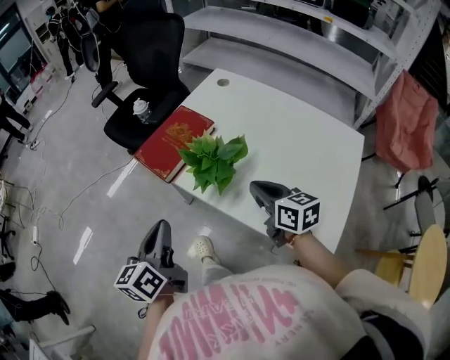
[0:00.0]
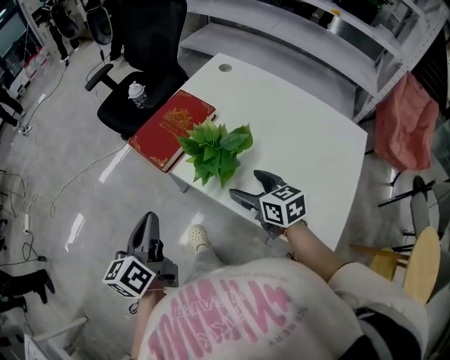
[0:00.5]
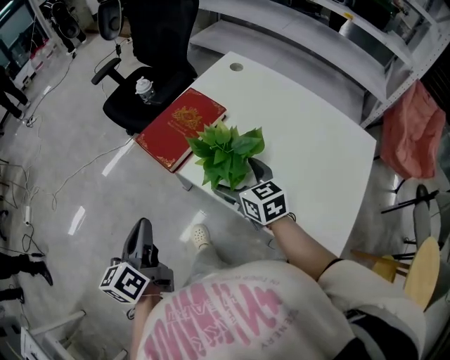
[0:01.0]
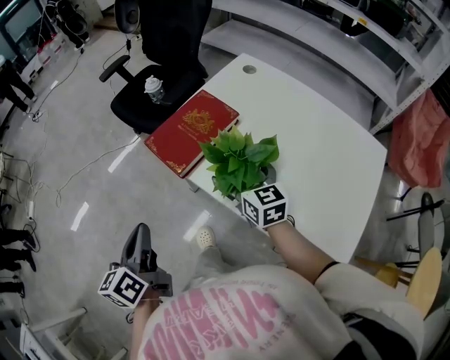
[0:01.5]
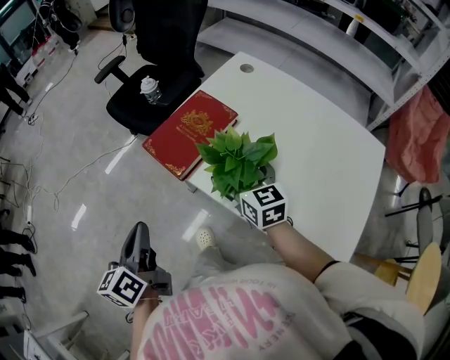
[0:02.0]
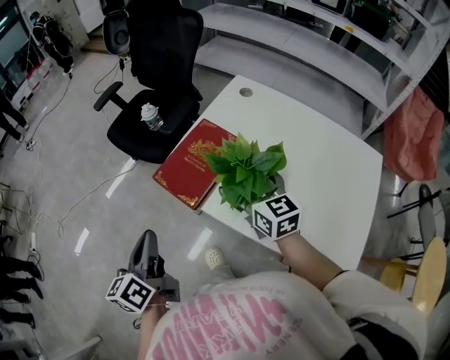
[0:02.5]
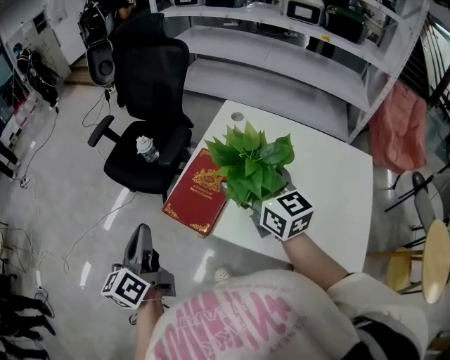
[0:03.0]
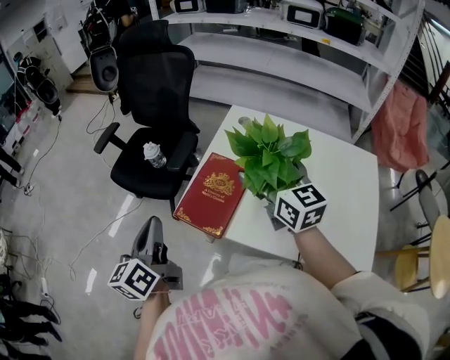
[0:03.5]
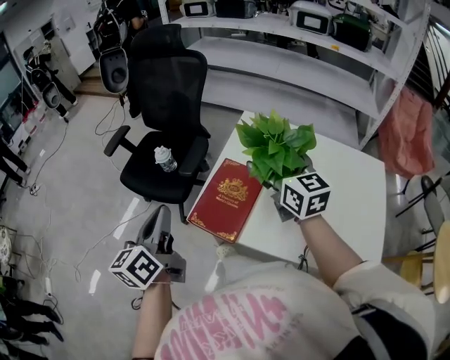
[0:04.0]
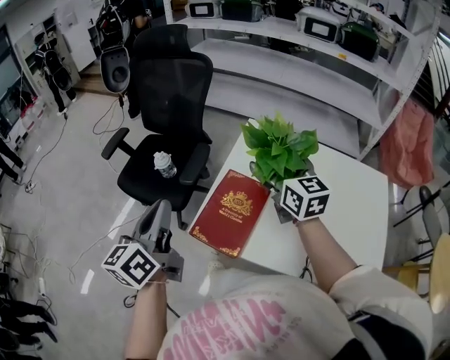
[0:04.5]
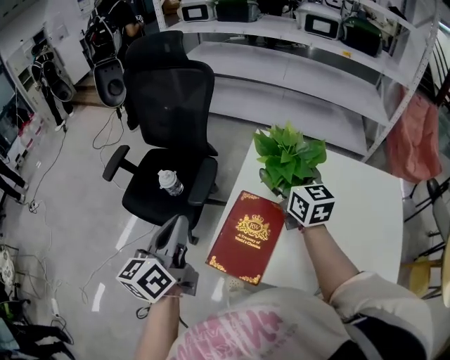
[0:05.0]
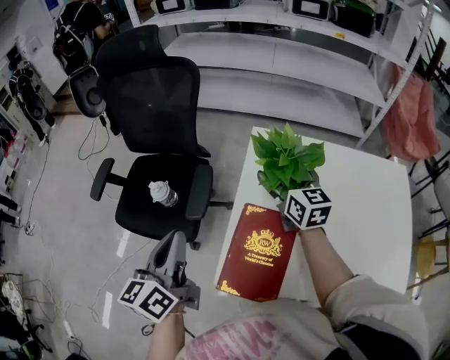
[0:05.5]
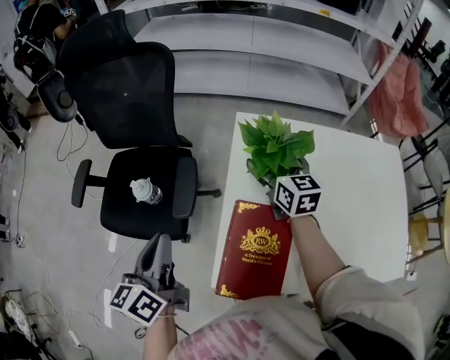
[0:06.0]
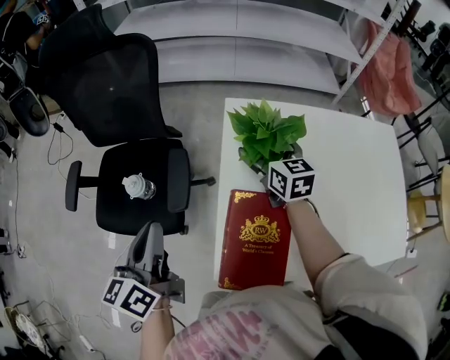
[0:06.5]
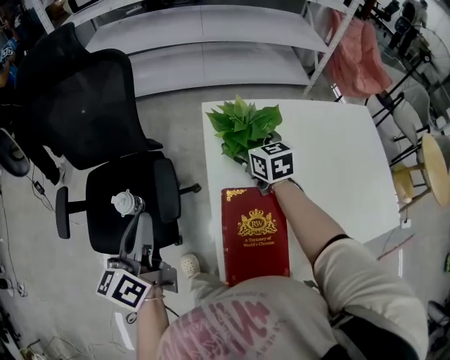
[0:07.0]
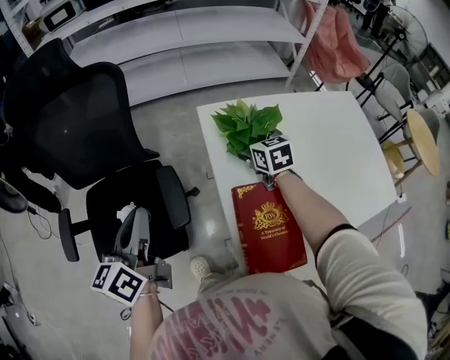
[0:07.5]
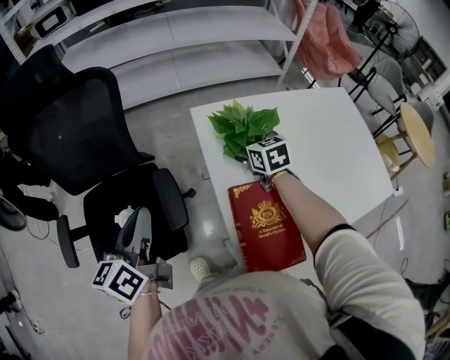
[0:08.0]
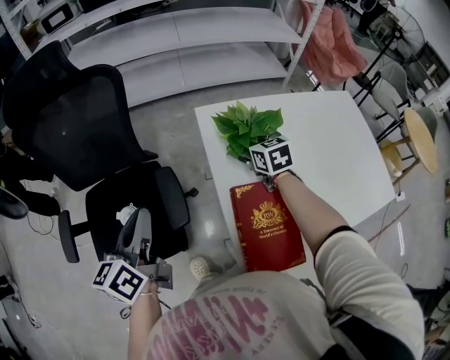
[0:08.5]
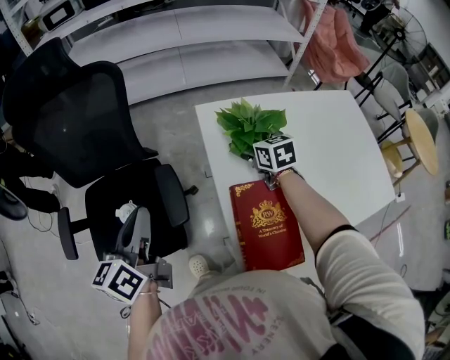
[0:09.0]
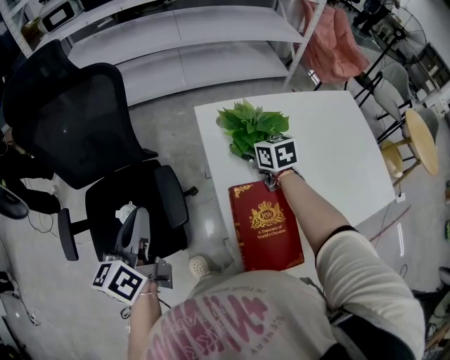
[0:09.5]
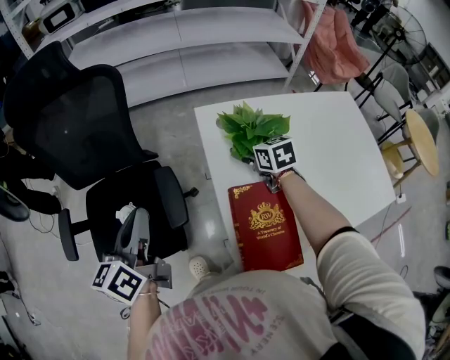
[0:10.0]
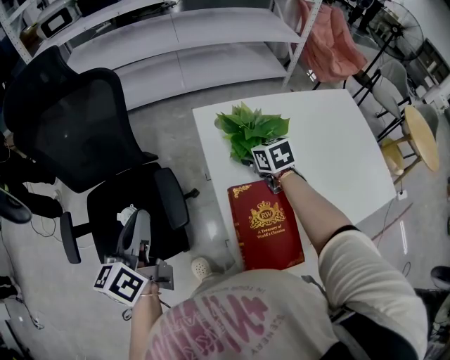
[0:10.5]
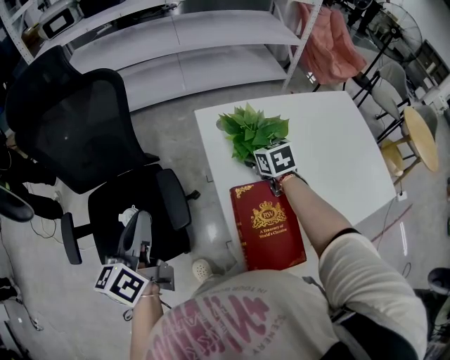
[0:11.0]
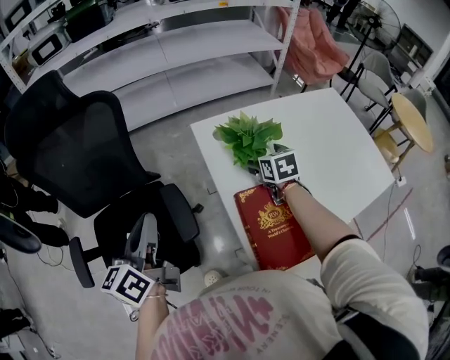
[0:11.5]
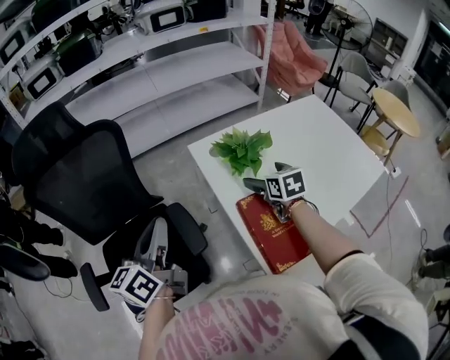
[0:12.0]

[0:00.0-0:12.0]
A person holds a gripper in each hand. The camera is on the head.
0:00.0 to 0:02.0: The right gripper travels forward and to the left by approximately 15 cm, and opens up. The left gripper travels to the left by some 10 cm.
0:02.0 to 0:04.0: The right gripper heads upward and forward, covering roughly 25 cm, and changes its angle by approximately 20 degrees. Meanwhile the left gripper goes roughly 25 cm forward and upward, and swivels roughly 20 degrees.
0:04.0 to 0:06.0: The right gripper shifts roughly 25 cm forward and downward, and changes its angle by roughly 20 degrees. Meanwhile the left gripper is displaced forward by about 20 cm.
0:06.0 to 0:08.0: The left gripper travels forward and to the left by some 10 cm, and rotates some 20 degrees, while the right gripper is displaced downward by roughly 5 cm, and turns by approximately 20 degrees.
0:08.0 to 0:10.0: There are only small adjustments of the grippers.
0:10.0 to 0:12.0: The right gripper heads backward and upward, covering approximately 10 cm; the left gripper shifts by about 5 cm.

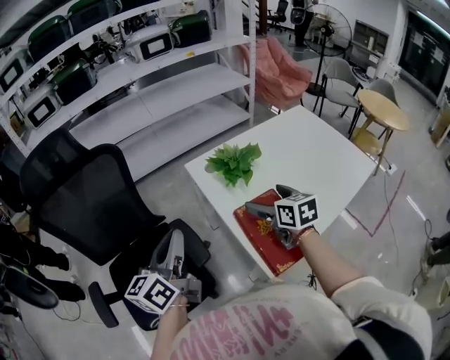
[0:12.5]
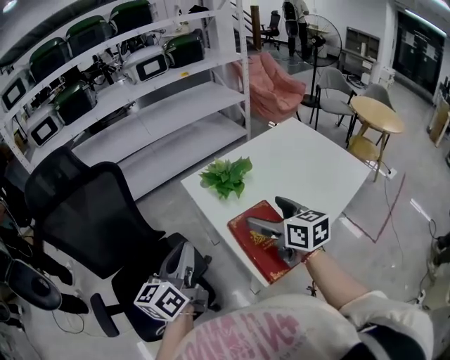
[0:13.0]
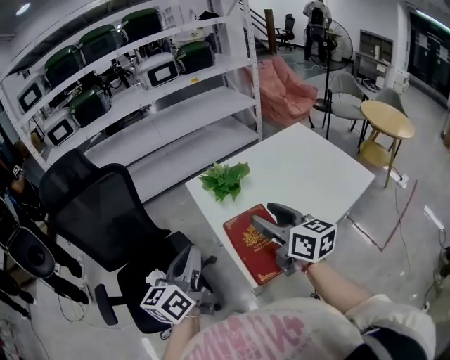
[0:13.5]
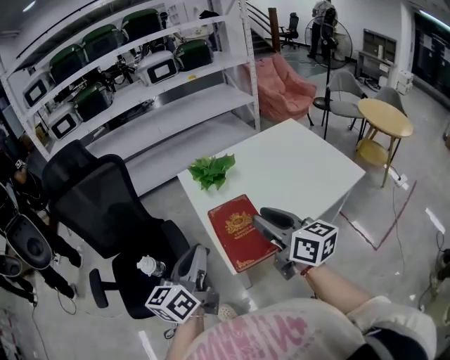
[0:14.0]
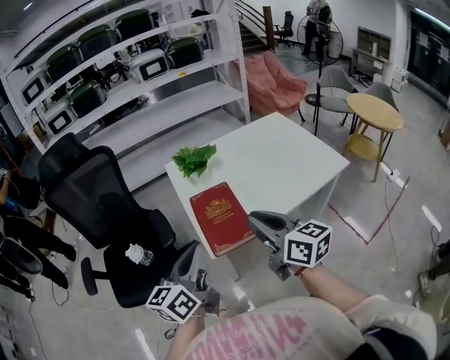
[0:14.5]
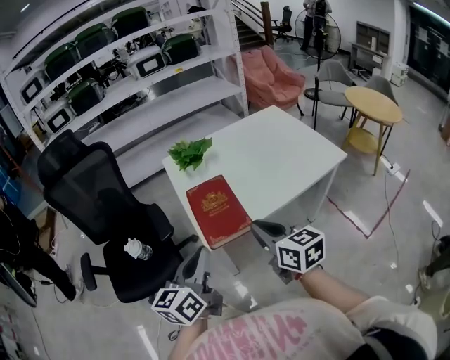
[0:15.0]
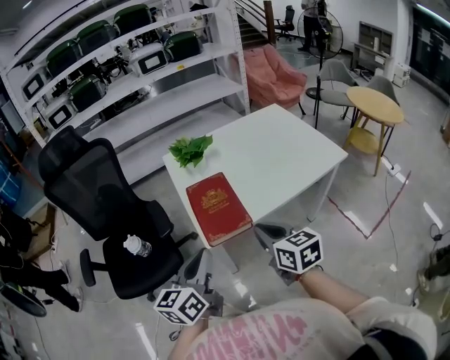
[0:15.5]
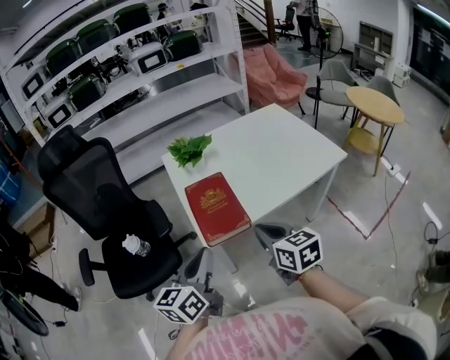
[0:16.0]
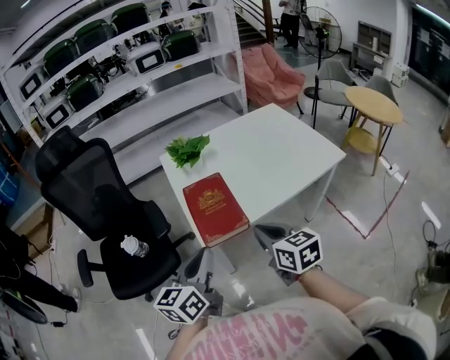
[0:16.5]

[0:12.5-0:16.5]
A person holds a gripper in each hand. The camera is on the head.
0:12.5 to 0:14.5: The left gripper is displaced to the right and backward by roughly 30 cm; the right gripper is displaced backward, upward and to the right by about 30 cm, swivels about 30 degrees, and closes.
0:14.5 to 0:16.5: The right gripper travels downward by roughly 10 cm, and changes its angle by roughly 20 degrees; the left gripper moves about 5 cm.

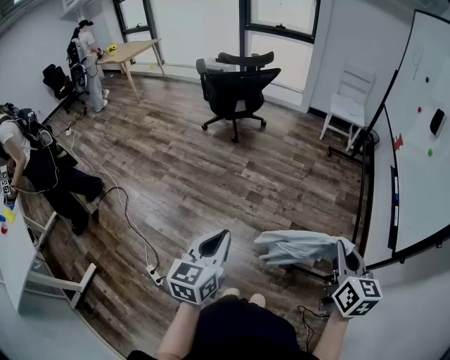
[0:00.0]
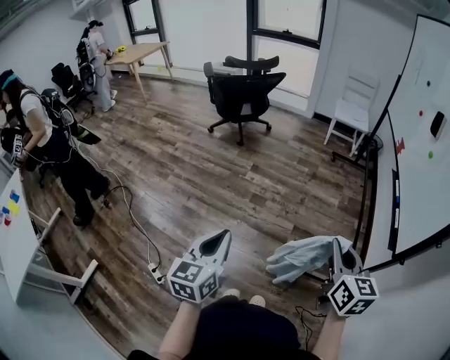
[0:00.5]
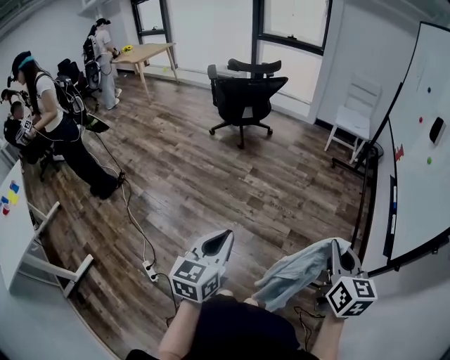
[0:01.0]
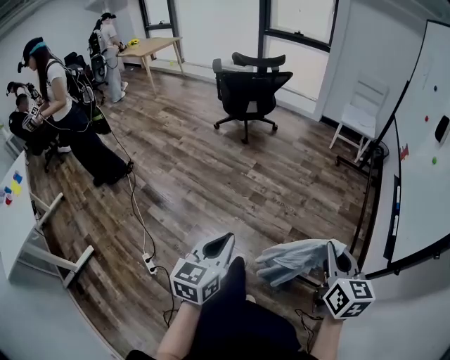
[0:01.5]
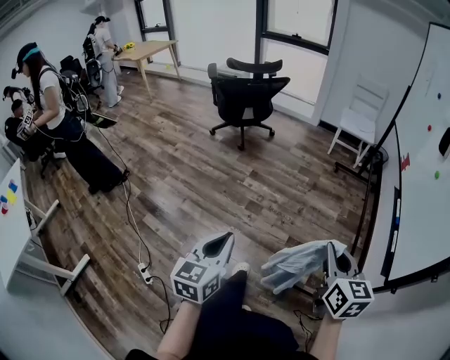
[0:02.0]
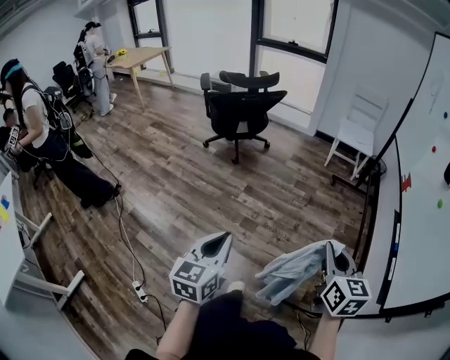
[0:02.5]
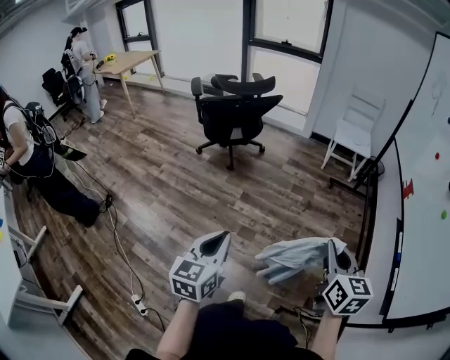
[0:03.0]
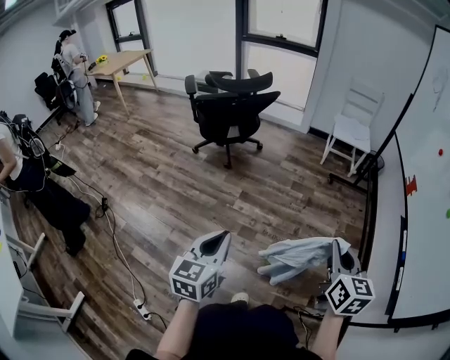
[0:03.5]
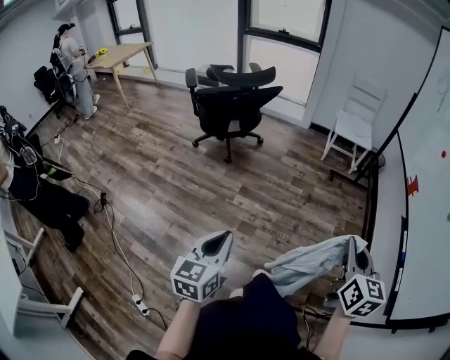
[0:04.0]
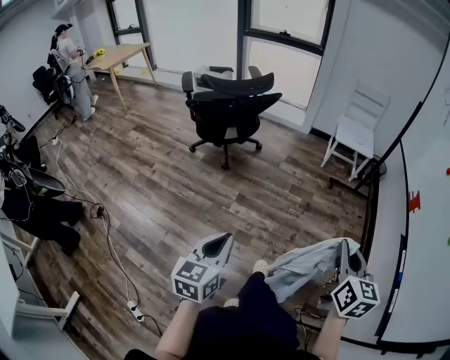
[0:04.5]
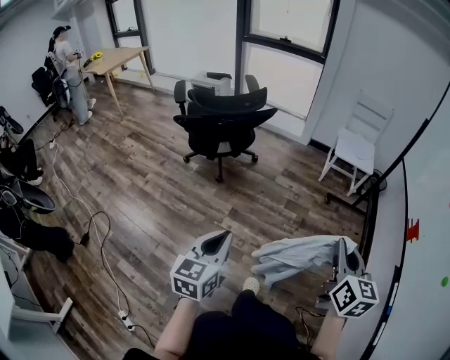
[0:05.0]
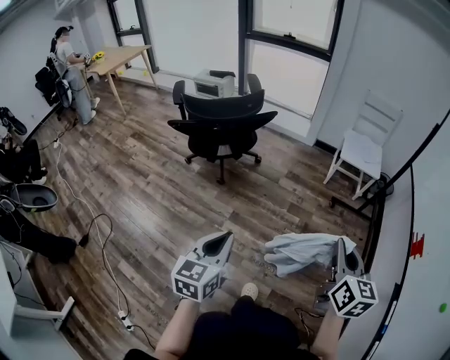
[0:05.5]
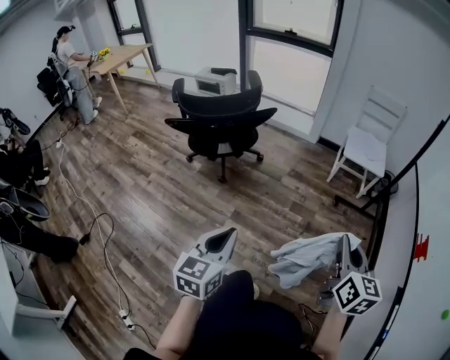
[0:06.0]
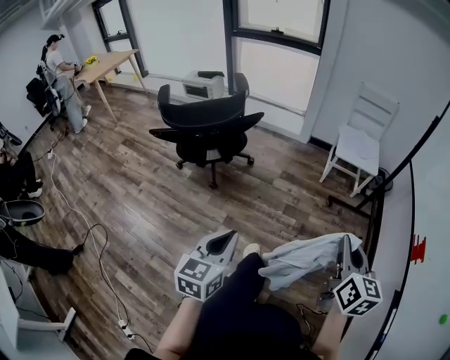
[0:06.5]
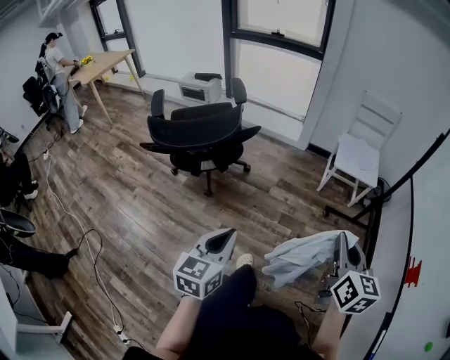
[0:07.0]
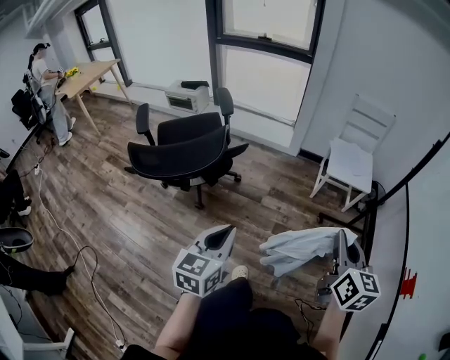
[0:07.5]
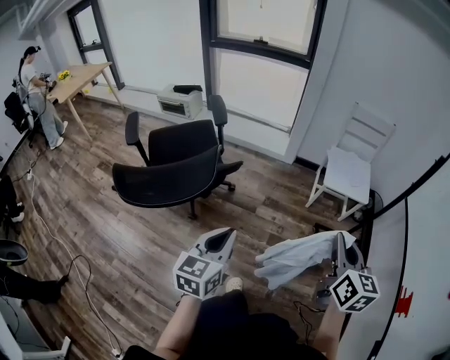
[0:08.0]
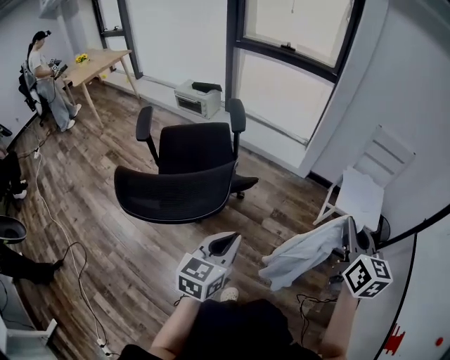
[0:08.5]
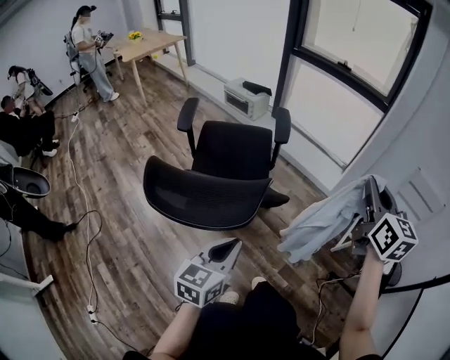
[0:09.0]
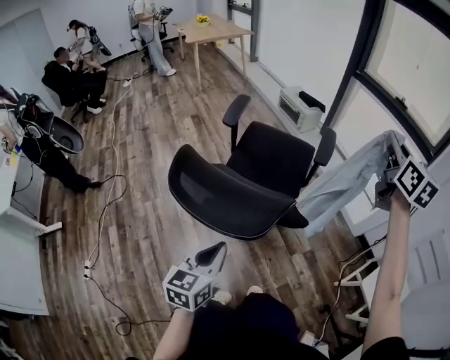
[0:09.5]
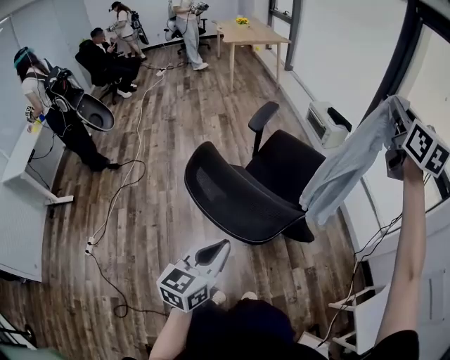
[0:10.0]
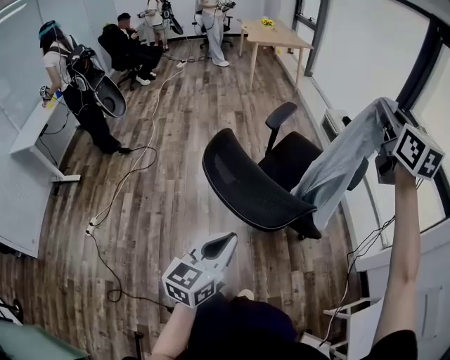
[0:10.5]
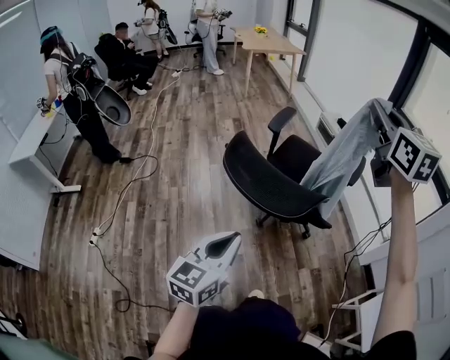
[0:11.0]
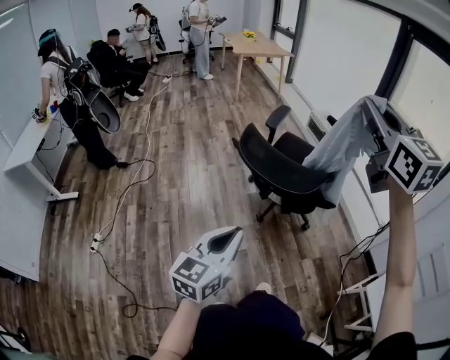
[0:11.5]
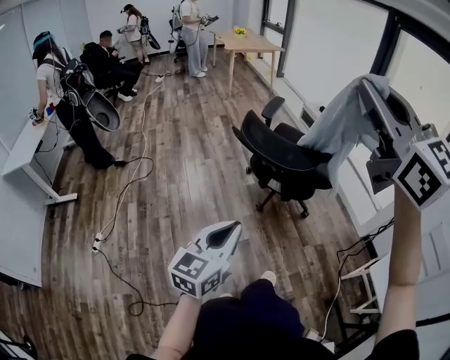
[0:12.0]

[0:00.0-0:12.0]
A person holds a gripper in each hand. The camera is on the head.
0:00.0 to 0:02.0: The left gripper shifts some 5 cm to the right. The right gripper is displaced forward by approximately 5 cm.
0:02.0 to 0:04.0: The grippers both shift forward by roughly 25 cm.
0:04.0 to 0:06.0: Both grippers travel together forward, approximately 30 cm.
0:06.0 to 0:08.0: Both grippers move forward, roughly 30 cm.
0:08.0 to 0:10.0: The left gripper ends up approximately 15 cm from where it was, and turns by about 50 degrees; the right gripper moves roughly 70 cm, and swivels some 60 degrees.
0:10.0 to 0:12.0: The right gripper goes about 50 cm backward and to the left, and rotates some 30 degrees. The left gripper moves backward and to the left, approximately 25 cm.
